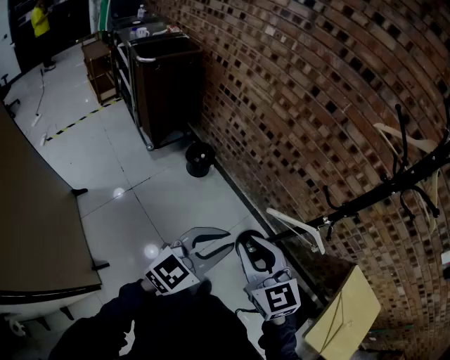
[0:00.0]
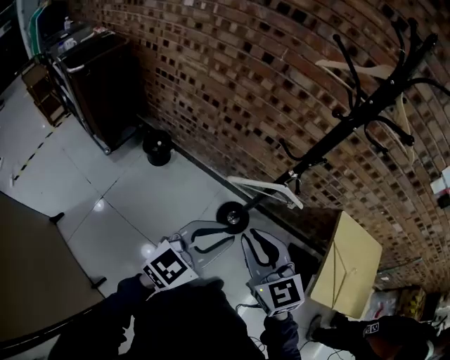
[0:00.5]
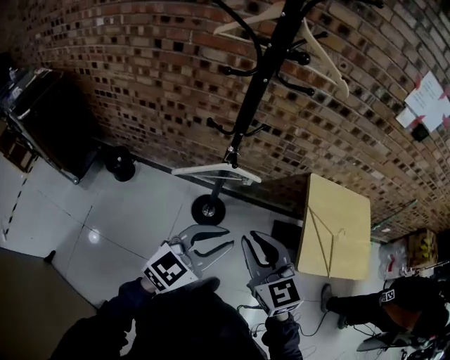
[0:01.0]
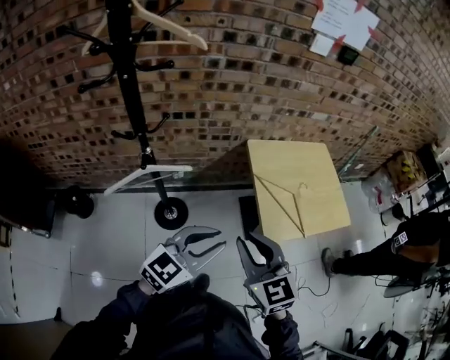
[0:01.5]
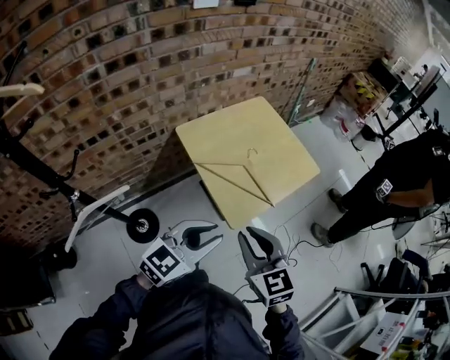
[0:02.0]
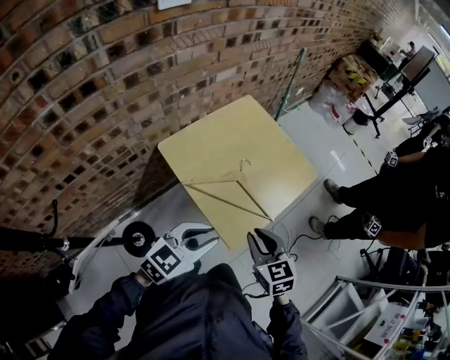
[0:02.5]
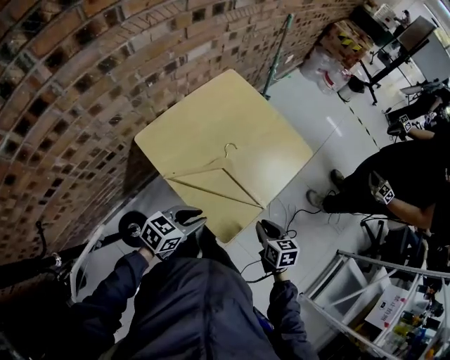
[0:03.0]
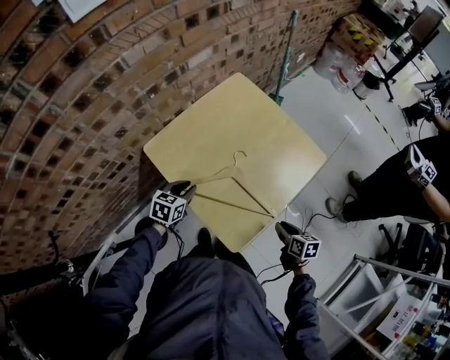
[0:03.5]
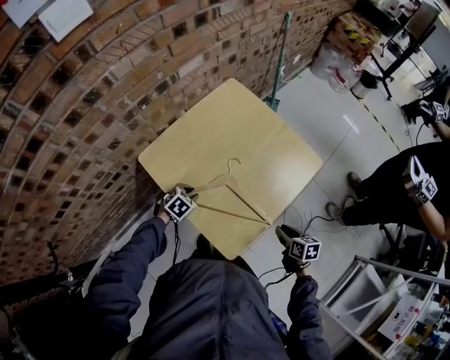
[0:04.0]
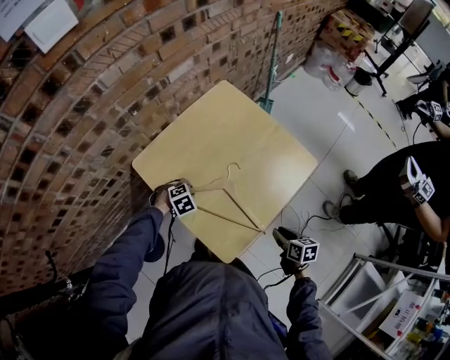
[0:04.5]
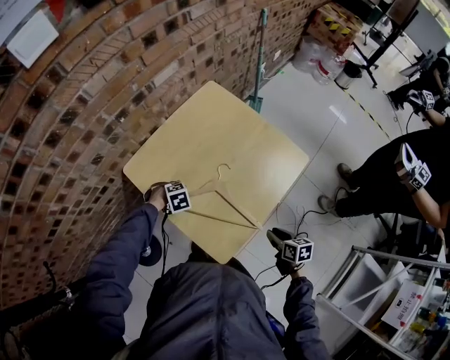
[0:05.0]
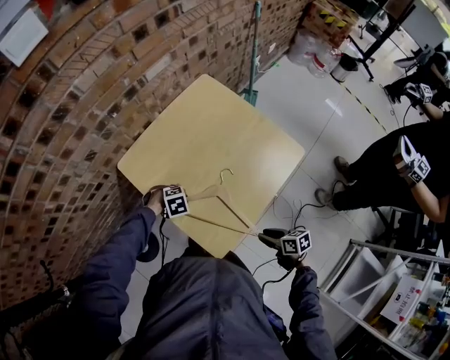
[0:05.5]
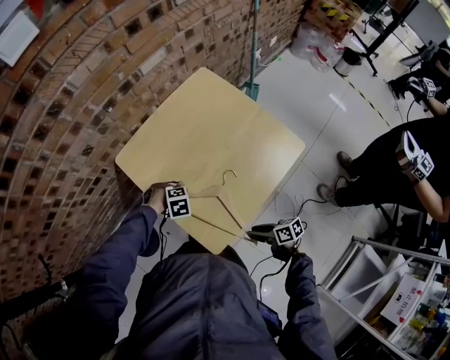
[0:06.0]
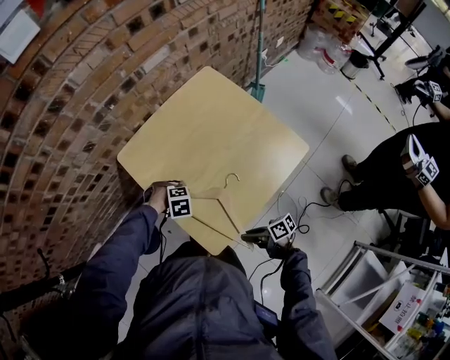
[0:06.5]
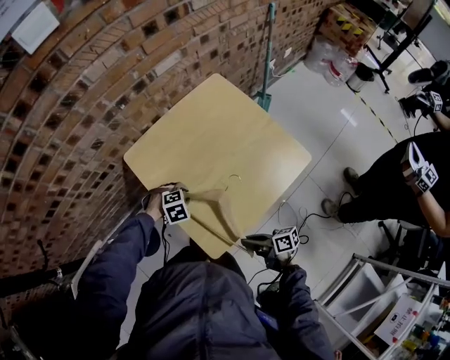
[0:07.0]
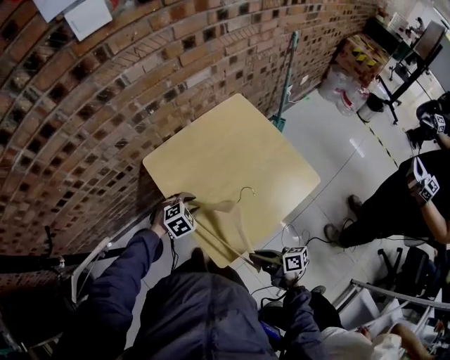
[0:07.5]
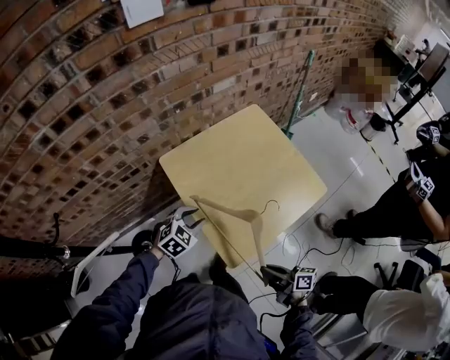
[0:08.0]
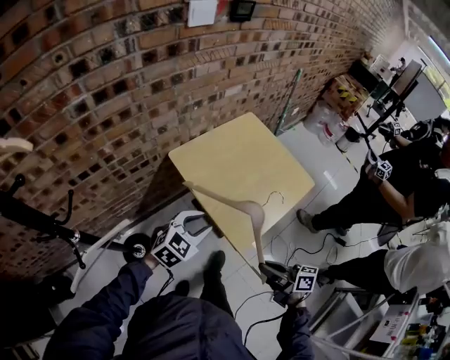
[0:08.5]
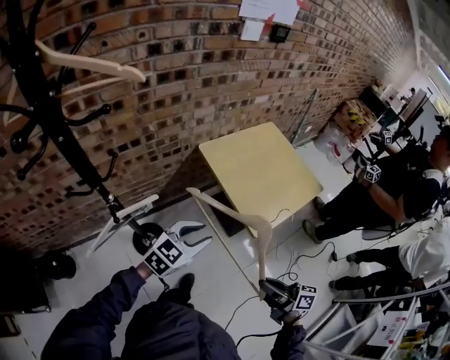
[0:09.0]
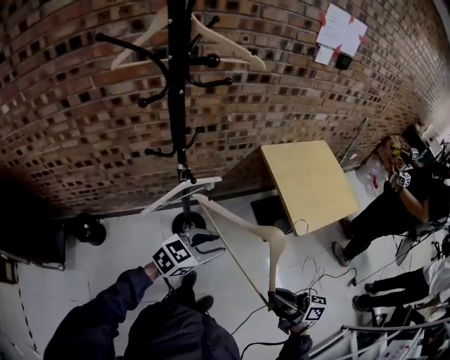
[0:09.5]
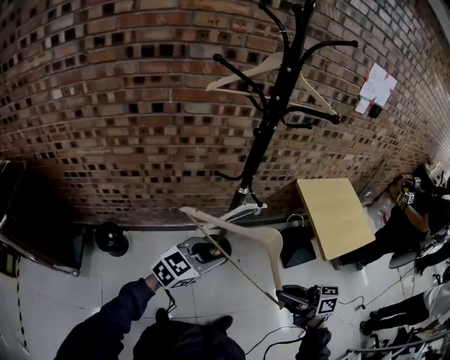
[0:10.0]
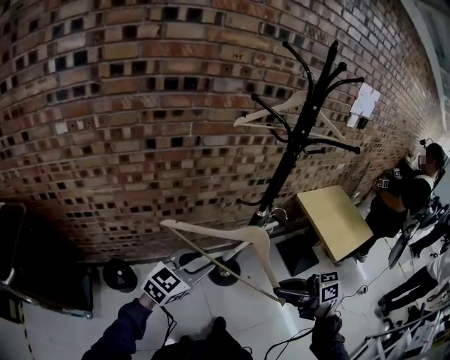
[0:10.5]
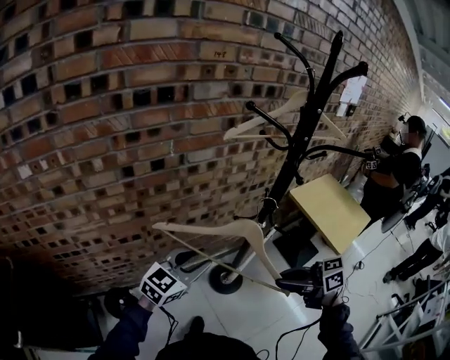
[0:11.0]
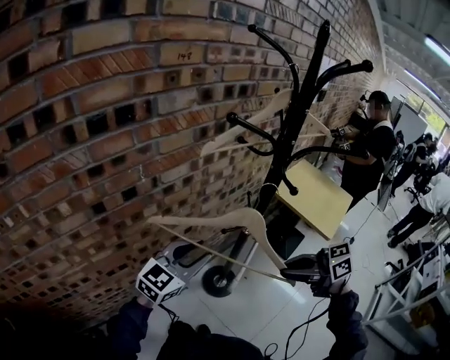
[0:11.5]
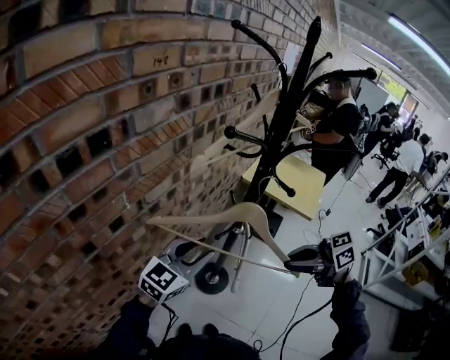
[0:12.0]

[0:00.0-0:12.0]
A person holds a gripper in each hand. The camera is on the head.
0:00.0 to 0:02.0: Both grippers are carried some 60 cm. The left gripper swivels some 80 degrees, while the right gripper rotates about 80 degrees.
0:02.0 to 0:04.0: The left gripper travels downward and forward by some 50 cm, and angles its fingers downward, by approximately 50 degrees; the right gripper heads downward, forward and to the right, covering about 40 cm, and rotates around the line of its fingers by roughly 50 degrees, clockwise from behind.
0:04.0 to 0:06.0: The left gripper changes place by about 5 cm, and turns by some 40 degrees, while the right gripper ends up approximately 10 cm from where it was, and changes its angle by about 40 degrees.
0:06.0 to 0:08.0: Both grippers travel together upward, approximately 15 cm. The right gripper changes its angle by roughly 20 degrees, and closes. Meanwhile the left gripper points its fingers roughly 30 degrees further upward.
0:08.0 to 0:10.0: The pair of grippers is taken some 60 cm. The right gripper rotates about 40 degrees. The left gripper tilts its fingers some 30 degrees upward.
0:10.0 to 0:12.0: The left gripper changes place by about 35 cm, and swivels roughly 30 degrees. Meanwhile the right gripper moves some 35 cm, and swivels about 30 degrees.

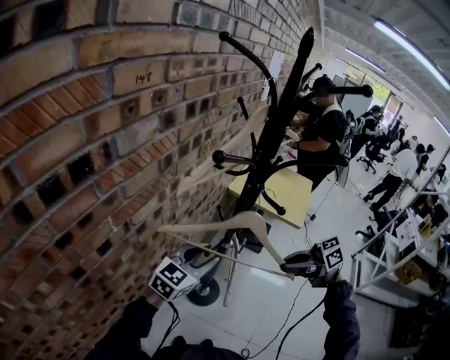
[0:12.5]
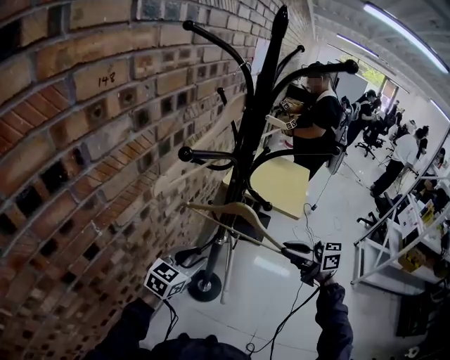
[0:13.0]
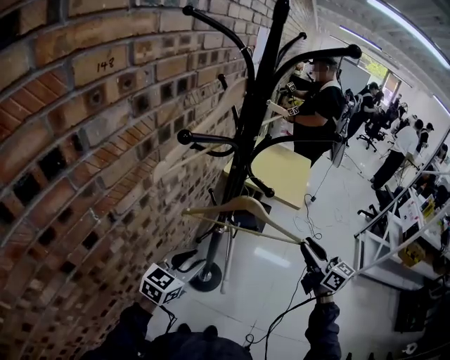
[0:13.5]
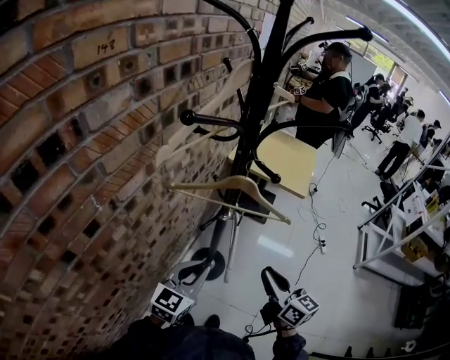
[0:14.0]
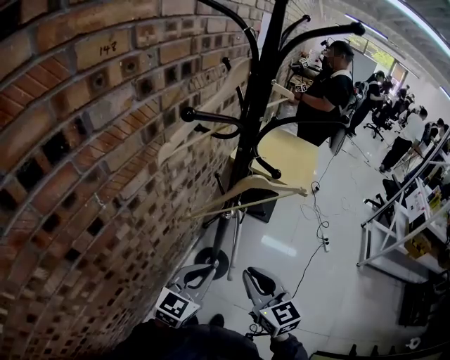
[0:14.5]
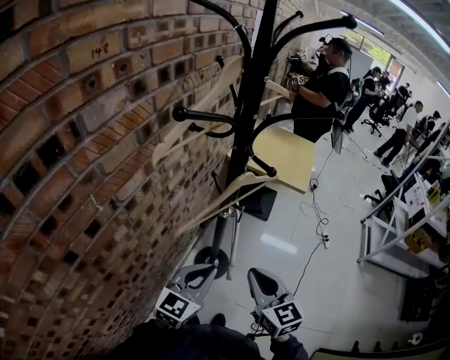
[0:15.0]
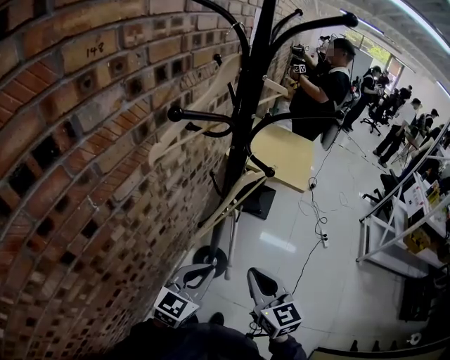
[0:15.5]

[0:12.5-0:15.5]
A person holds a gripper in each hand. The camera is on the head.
0:12.5 to 0:14.0: The left gripper shifts by roughly 10 cm, and closes its fingers. The right gripper shifts by roughly 10 cm, rotates approximately 60 degrees, and opens, then closes once more.
0:14.0 to 0:15.5: The right gripper moves to the left, approximately 5 cm, and rotates roughly 20 degrees.

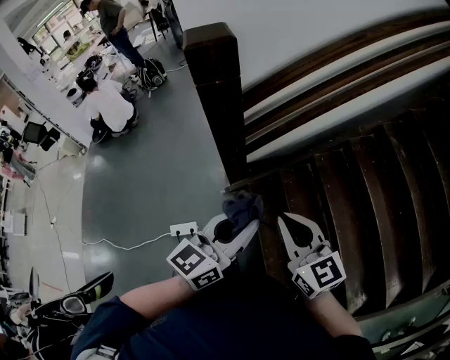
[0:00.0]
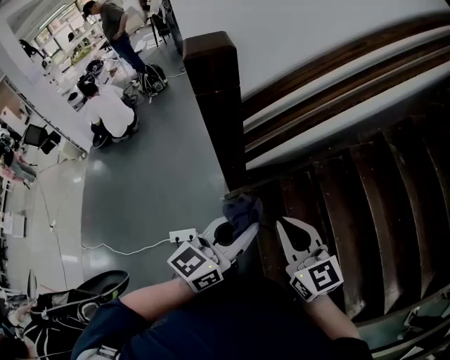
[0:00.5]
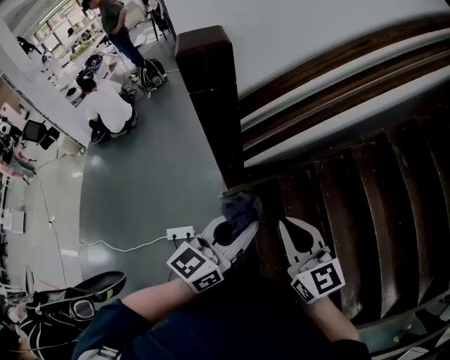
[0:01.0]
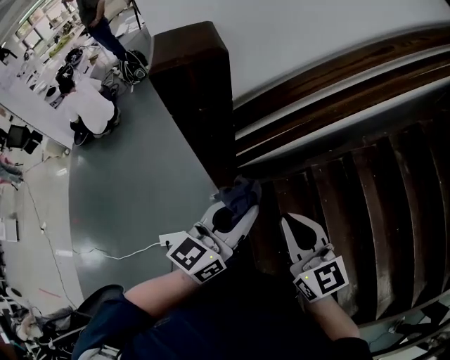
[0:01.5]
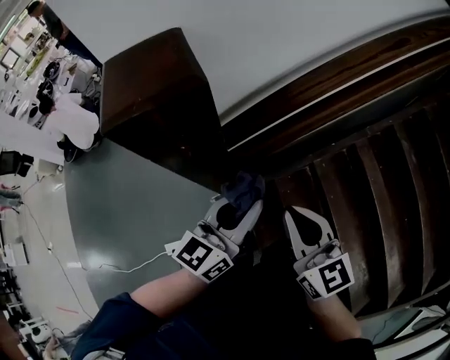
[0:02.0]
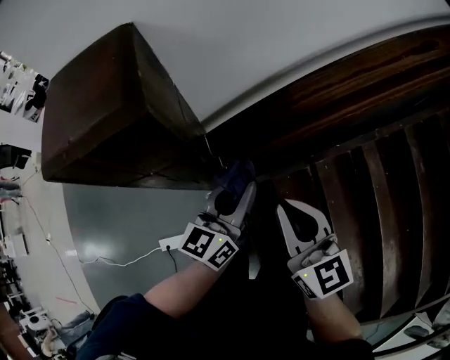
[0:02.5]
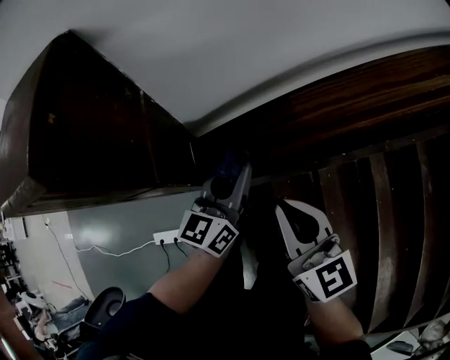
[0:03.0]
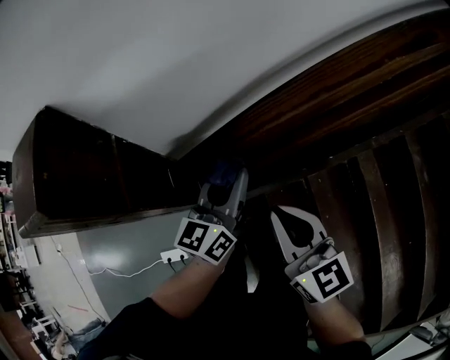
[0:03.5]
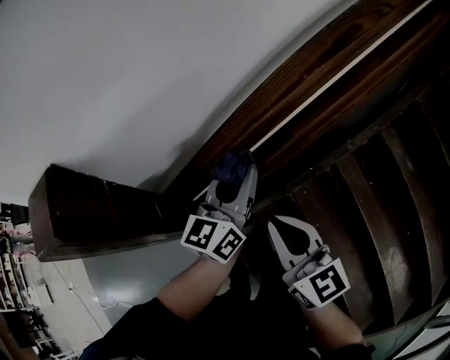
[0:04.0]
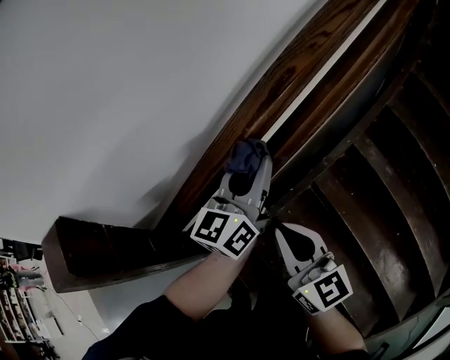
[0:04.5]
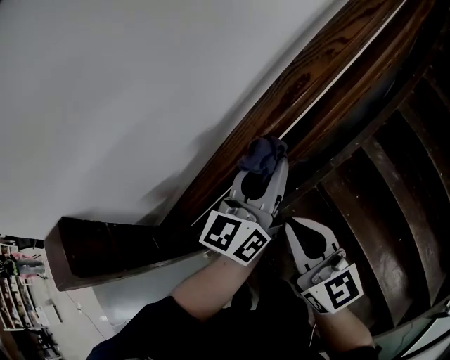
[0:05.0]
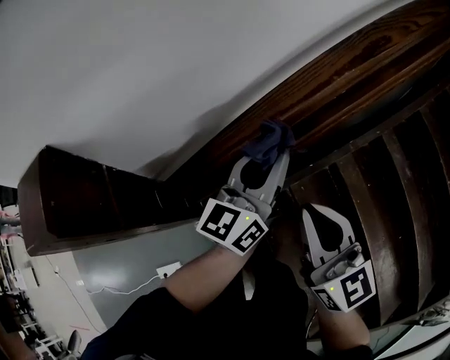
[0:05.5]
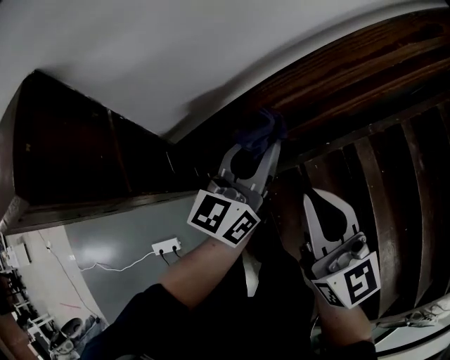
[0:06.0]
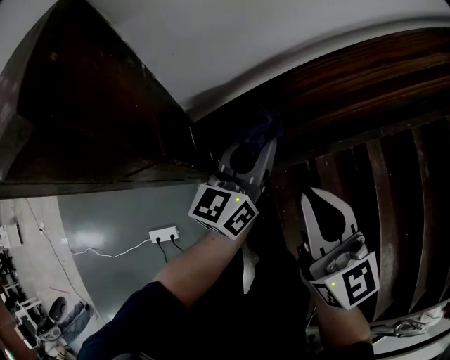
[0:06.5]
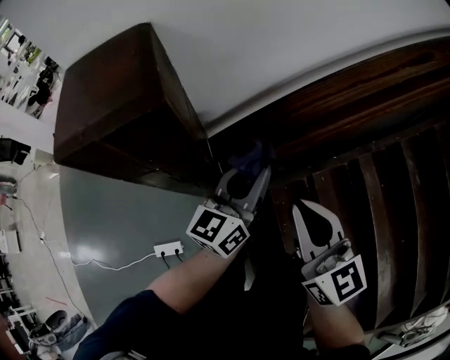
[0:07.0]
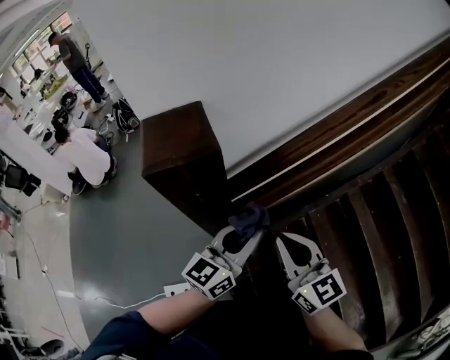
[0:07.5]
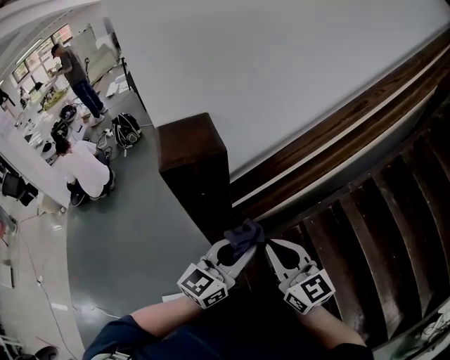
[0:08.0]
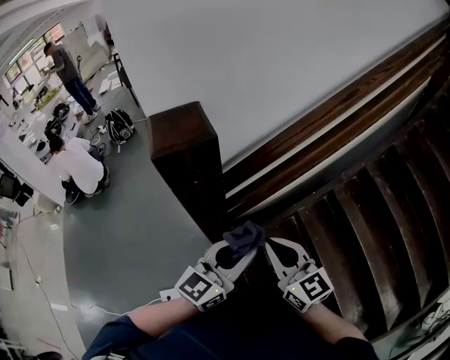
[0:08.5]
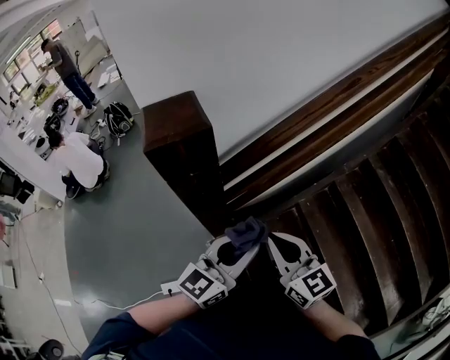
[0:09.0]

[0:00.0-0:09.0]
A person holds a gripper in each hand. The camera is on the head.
0:00.0 to 0:02.0: Both grippers travel together forward, roughly 30 cm.
0:02.0 to 0:04.5: Both grippers travel together to the right and forward, some 35 cm.
0:04.5 to 0:07.0: The right gripper goes approximately 25 cm to the left and backward. The left gripper travels to the left, backward and downward by some 35 cm.
0:07.0 to 0:09.0: The right gripper shifts about 15 cm backward; the left gripper heads backward and upward, covering approximately 25 cm, and changes its angle by approximately 20 degrees.

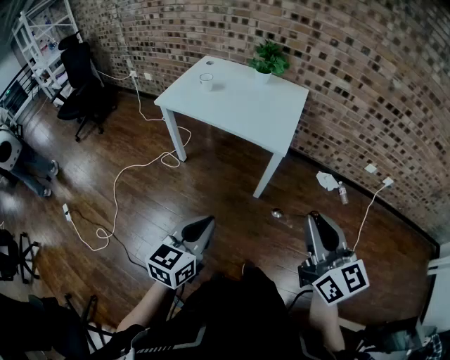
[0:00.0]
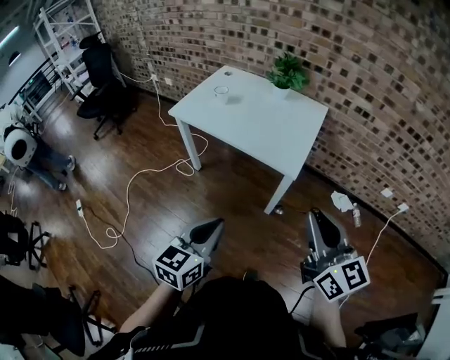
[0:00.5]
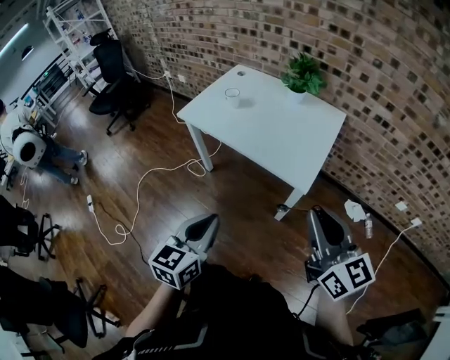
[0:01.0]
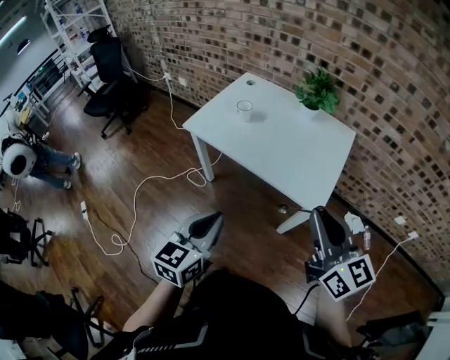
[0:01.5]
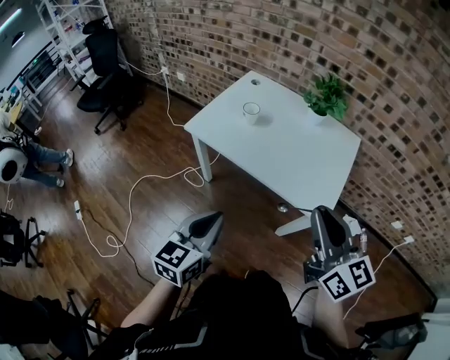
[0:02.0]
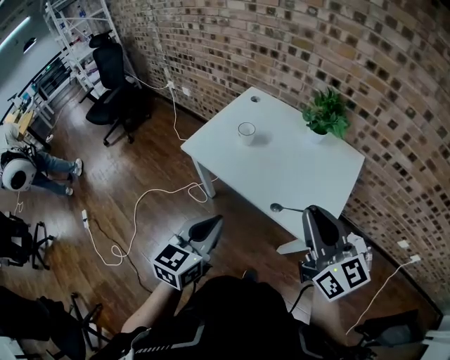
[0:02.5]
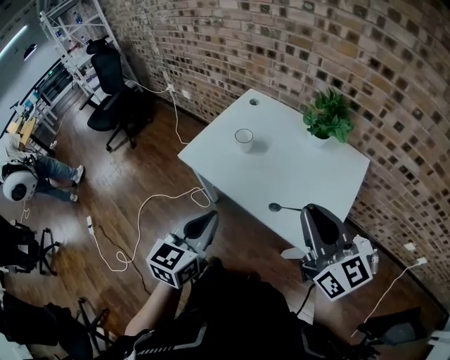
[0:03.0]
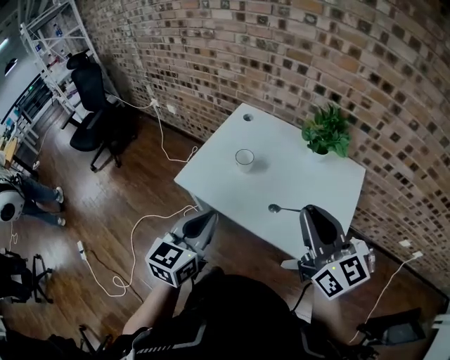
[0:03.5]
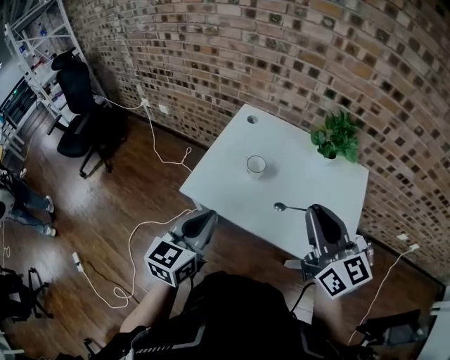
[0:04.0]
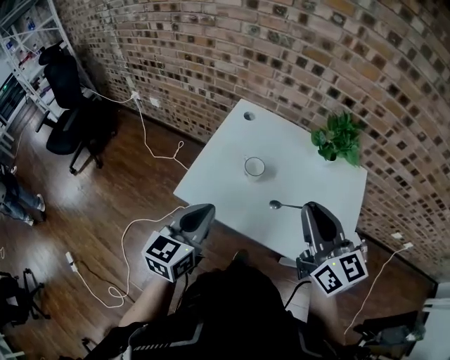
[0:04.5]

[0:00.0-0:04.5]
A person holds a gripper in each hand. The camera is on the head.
0:00.0 to 0:02.0: The grippers both shift forward by some 30 cm.
0:02.0 to 0:04.5: The right gripper travels forward and to the left by approximately 30 cm, while the left gripper is displaced forward by about 30 cm.
